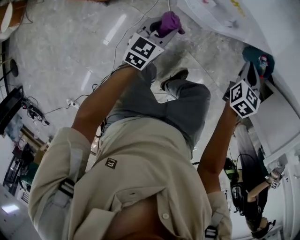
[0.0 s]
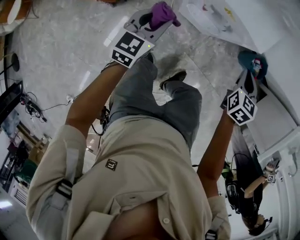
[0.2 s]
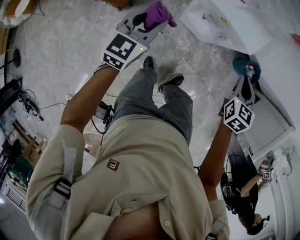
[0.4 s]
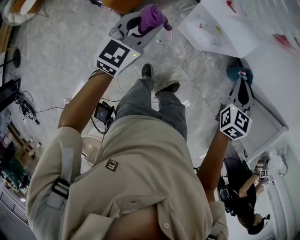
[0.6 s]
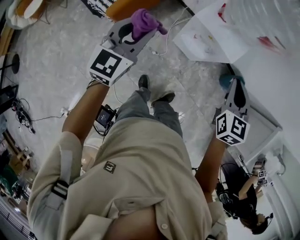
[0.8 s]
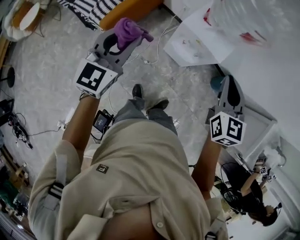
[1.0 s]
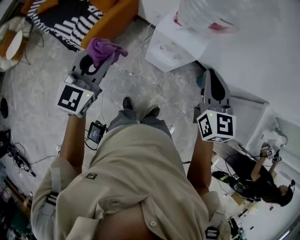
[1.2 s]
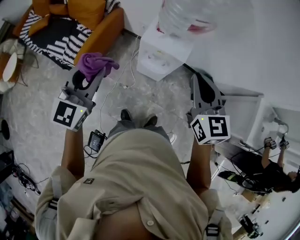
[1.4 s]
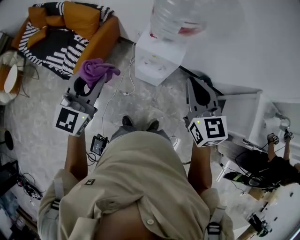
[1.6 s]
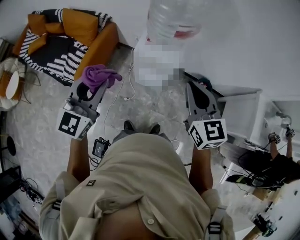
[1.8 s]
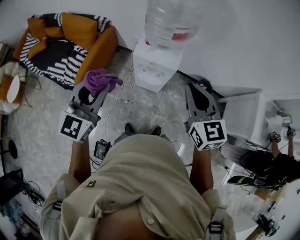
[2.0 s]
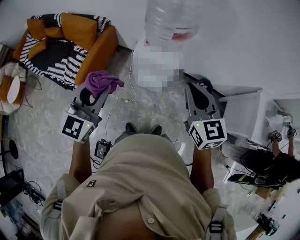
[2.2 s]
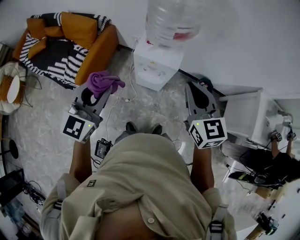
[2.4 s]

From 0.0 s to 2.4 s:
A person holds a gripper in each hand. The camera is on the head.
From 0.0 s to 1.2 s: Both grippers move upward, approximately 50 cm. The right gripper rotates about 30 degrees. Meanwhile the left gripper changes its angle by approximately 30 degrees.
From 1.2 s to 2.4 s: The right gripper ends up some 5 cm from where it was. The left gripper travels to the right and upward by approximately 10 cm.

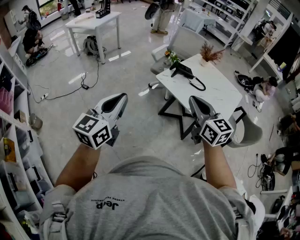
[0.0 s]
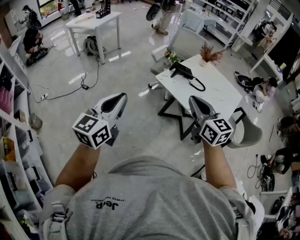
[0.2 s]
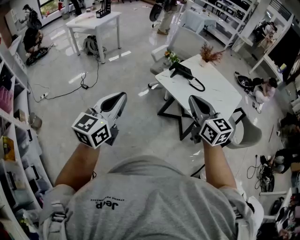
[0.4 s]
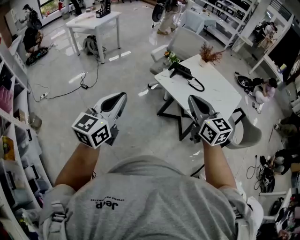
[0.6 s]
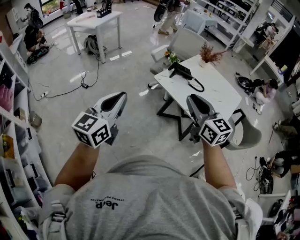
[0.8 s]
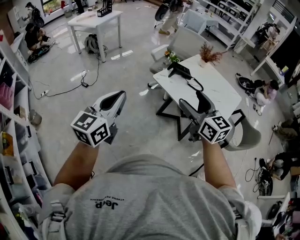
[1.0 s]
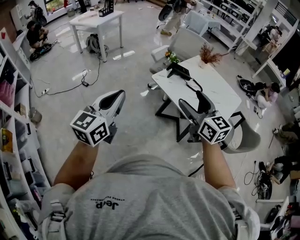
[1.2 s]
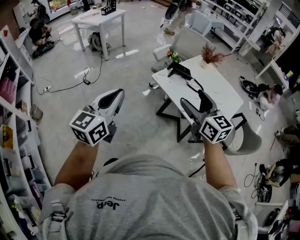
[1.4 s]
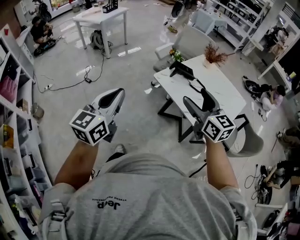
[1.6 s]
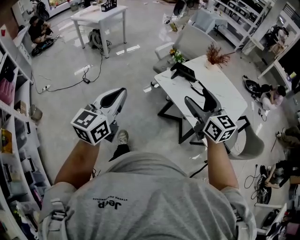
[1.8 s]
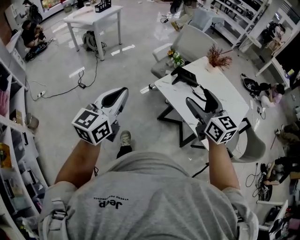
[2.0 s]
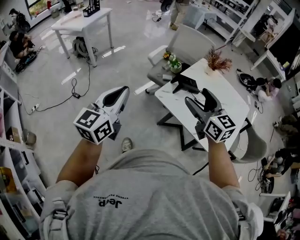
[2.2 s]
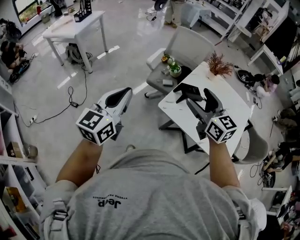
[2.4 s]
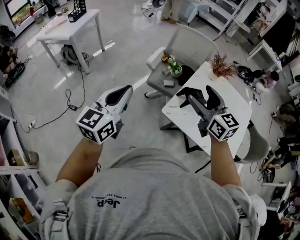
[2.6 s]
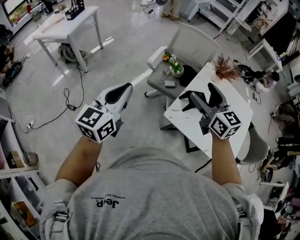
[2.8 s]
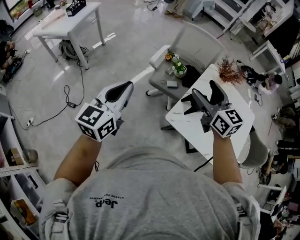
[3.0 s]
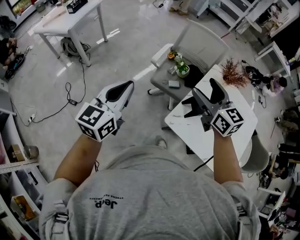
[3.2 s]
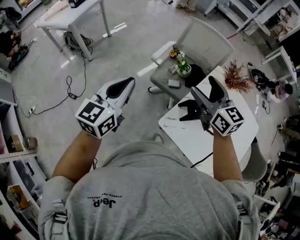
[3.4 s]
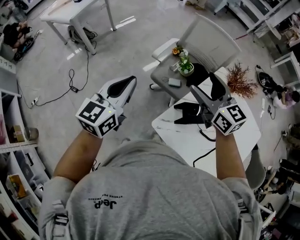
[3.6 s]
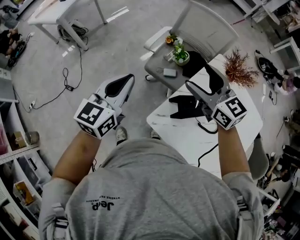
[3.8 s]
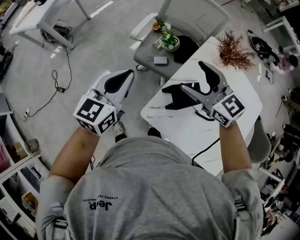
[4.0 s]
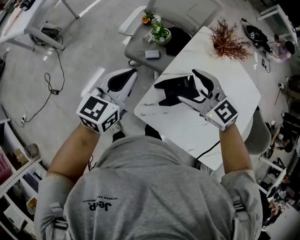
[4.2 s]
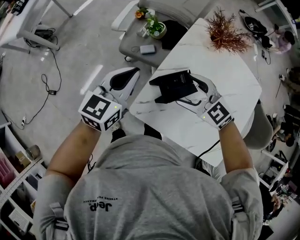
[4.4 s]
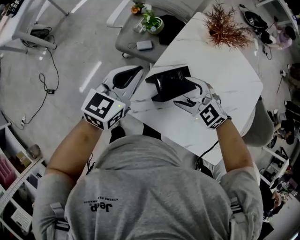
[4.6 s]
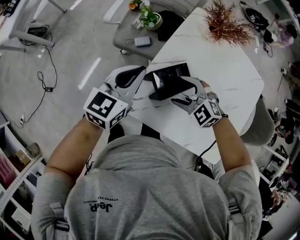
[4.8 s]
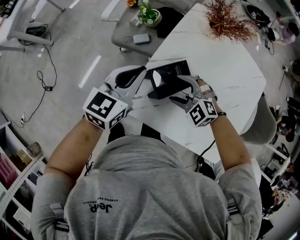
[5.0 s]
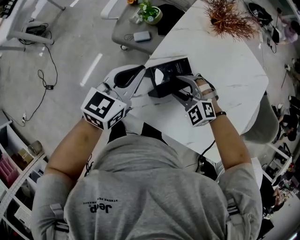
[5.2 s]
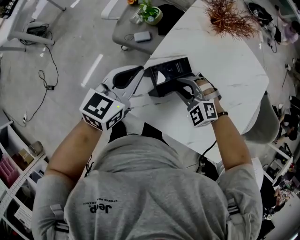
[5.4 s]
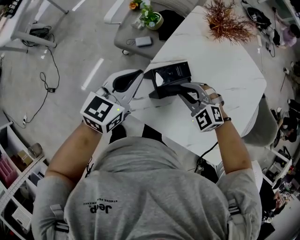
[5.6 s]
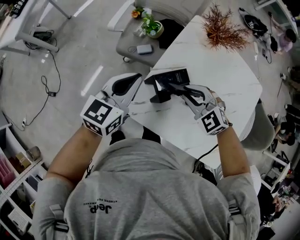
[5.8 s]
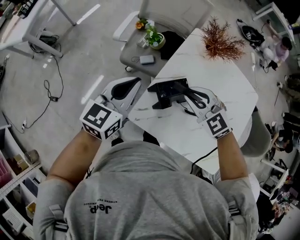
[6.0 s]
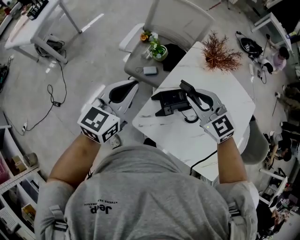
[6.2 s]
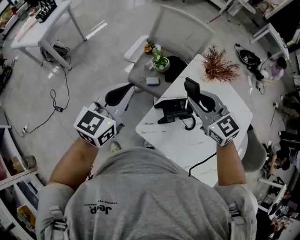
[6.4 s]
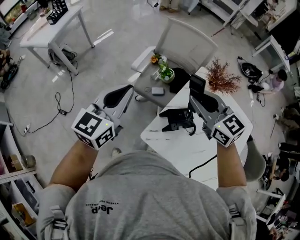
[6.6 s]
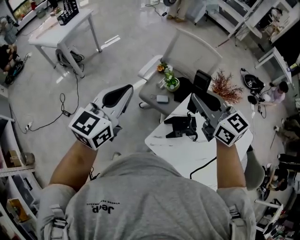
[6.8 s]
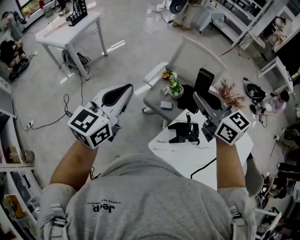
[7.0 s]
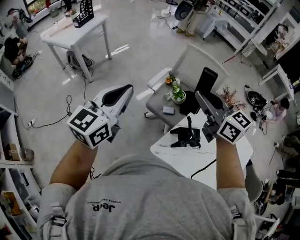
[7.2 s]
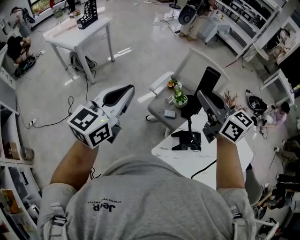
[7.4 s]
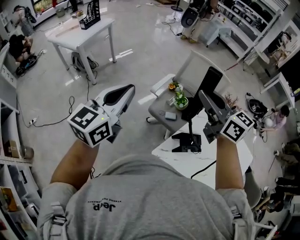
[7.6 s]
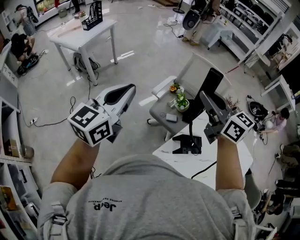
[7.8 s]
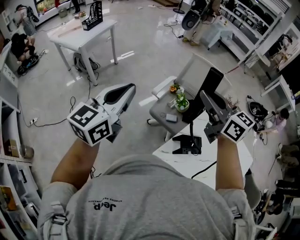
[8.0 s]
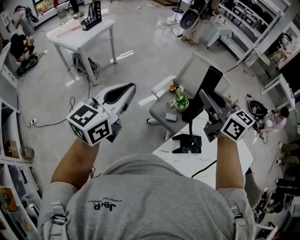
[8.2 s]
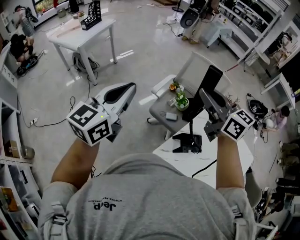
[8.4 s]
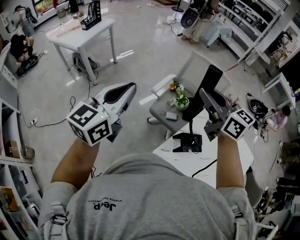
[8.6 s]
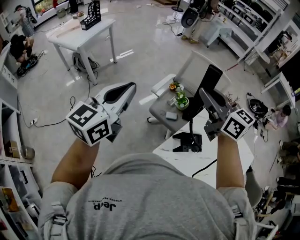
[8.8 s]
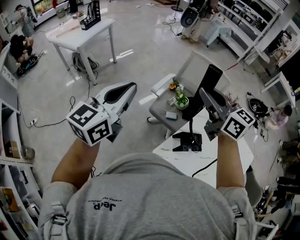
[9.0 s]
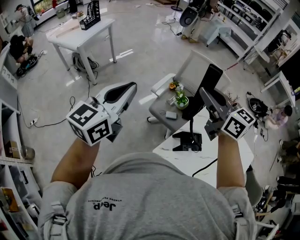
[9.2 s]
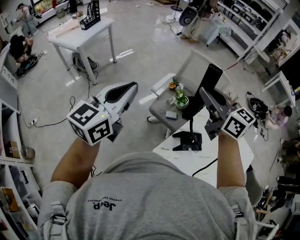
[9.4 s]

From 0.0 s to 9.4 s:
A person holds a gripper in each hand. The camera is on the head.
From 0.0 s to 1.6 s: The left gripper is displaced to the right by roughly 5 cm, while the right gripper heads to the right and forward, covering some 10 cm, and opens up.
From 1.6 s to 3.2 s: The two grippers travel together, forward, about 50 cm.
From 3.2 s to 4.8 s: The left gripper travels to the right and downward by about 35 cm, and rotates about 20 degrees. The right gripper shifts about 35 cm downward and to the right, and tips its fingers downward by about 40 degrees.
From 4.8 s to 6.2 s: The right gripper goes some 20 cm upward, changes its angle by about 30 degrees, and closes up. Meanwhile the left gripper is displaced upward and to the left by roughly 15 cm.
From 6.2 s to 7.8 s: The left gripper shifts about 25 cm to the left and upward, and rotates approximately 20 degrees, while the right gripper moves upward, to the left and forward, some 30 cm, and rotates some 30 degrees.
From 7.8 s to 9.4 s: The grippers stay close to where they were, moving slightly.

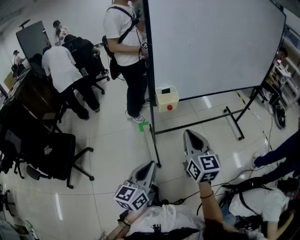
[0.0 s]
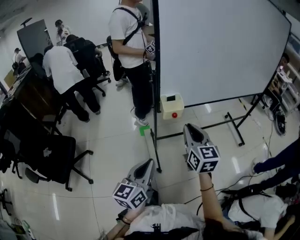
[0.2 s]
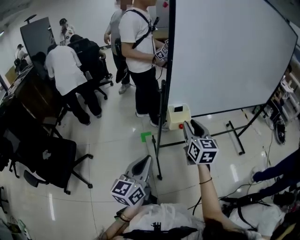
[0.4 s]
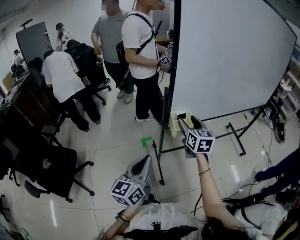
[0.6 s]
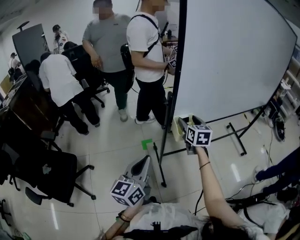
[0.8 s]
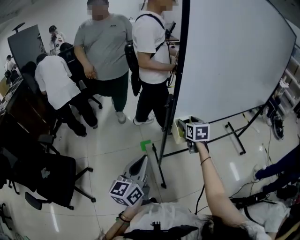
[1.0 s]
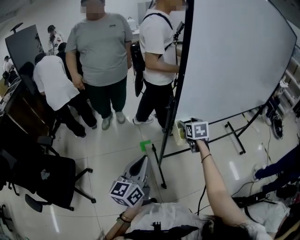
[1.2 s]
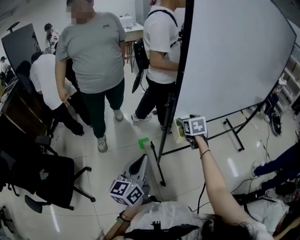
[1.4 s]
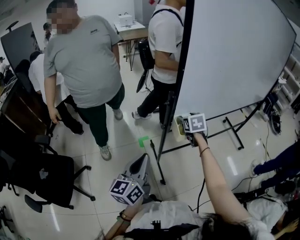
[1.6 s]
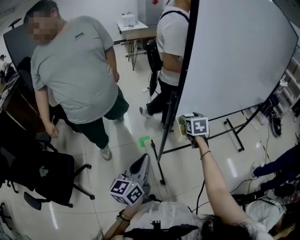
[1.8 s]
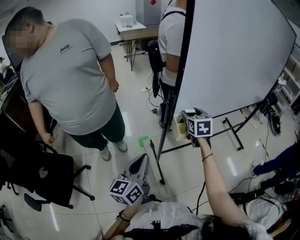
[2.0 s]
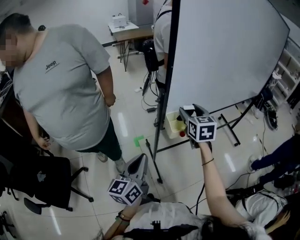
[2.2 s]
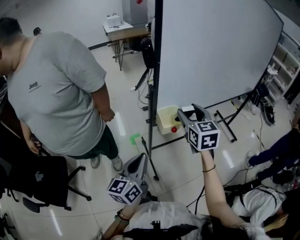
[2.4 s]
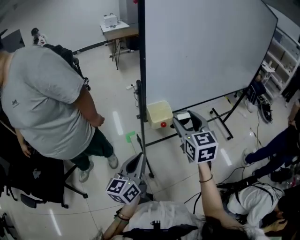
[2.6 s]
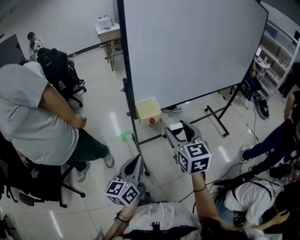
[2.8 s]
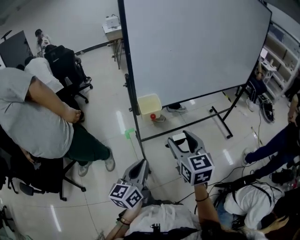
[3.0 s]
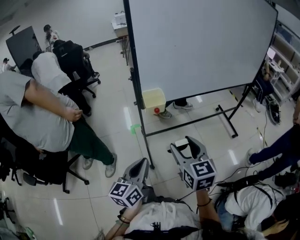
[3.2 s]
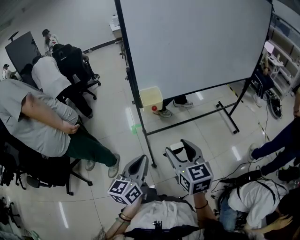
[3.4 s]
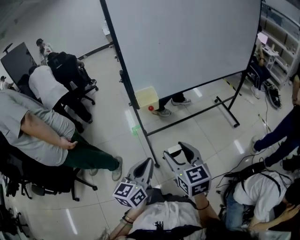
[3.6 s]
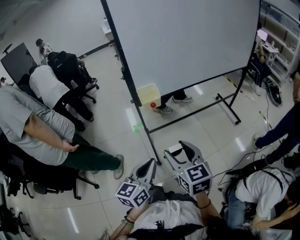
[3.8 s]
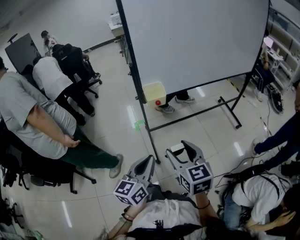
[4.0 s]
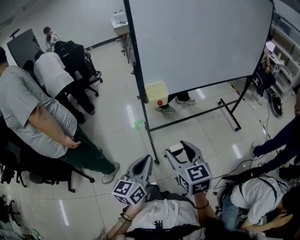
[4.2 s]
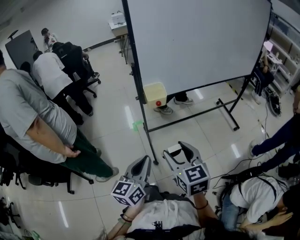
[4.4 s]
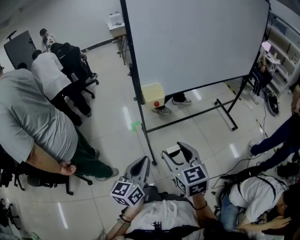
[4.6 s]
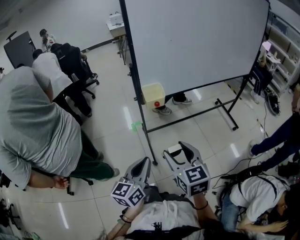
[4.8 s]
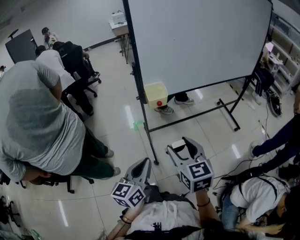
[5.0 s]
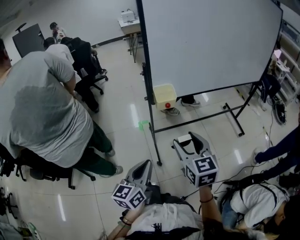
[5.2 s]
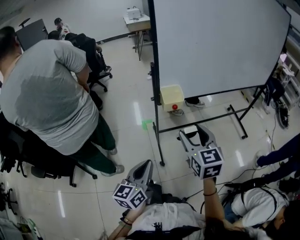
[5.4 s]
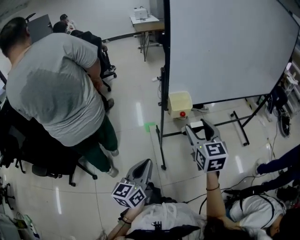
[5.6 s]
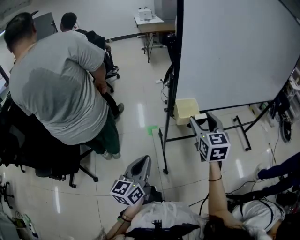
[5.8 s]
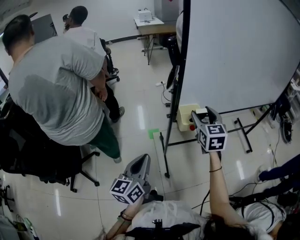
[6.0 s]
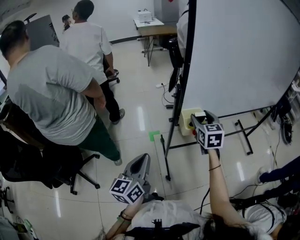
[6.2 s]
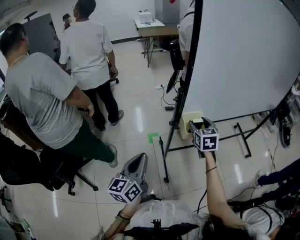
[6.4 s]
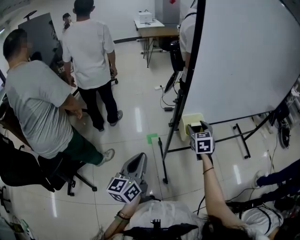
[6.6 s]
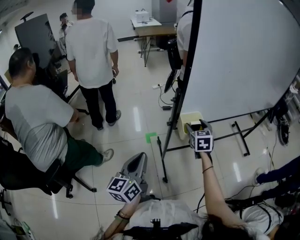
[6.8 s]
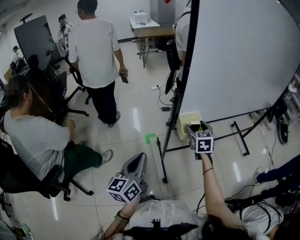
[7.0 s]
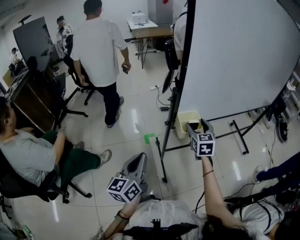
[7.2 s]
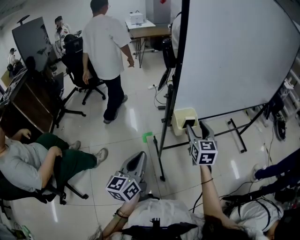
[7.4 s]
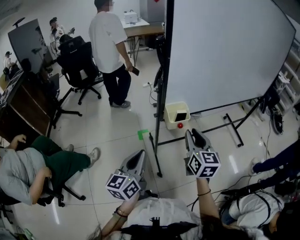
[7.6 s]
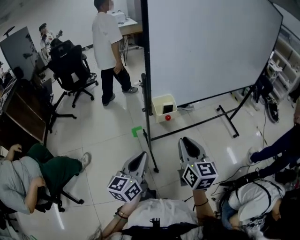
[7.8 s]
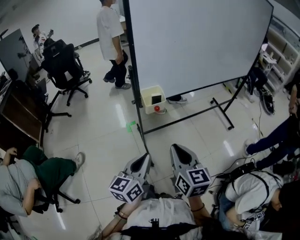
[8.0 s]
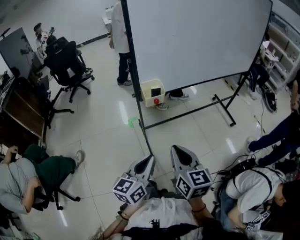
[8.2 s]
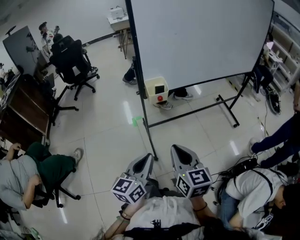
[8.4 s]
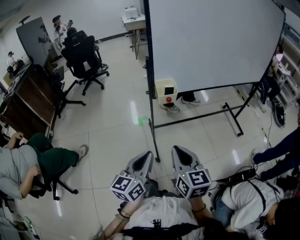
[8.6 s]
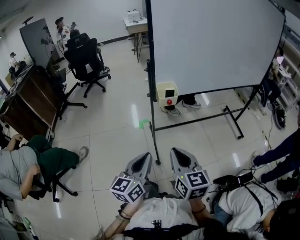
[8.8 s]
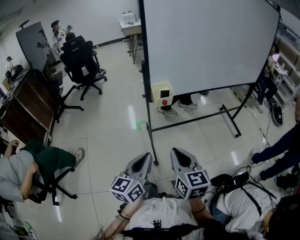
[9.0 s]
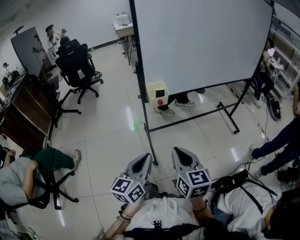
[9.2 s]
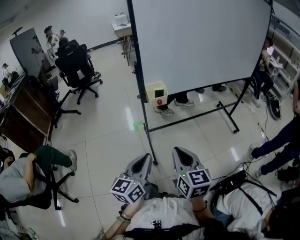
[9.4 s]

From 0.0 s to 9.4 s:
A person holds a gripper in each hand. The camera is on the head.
From 0.0 s to 1.6 s: The left gripper heads forward and to the left, covering some 25 cm, while the right gripper heads forward, covering roughly 35 cm, tilts its fingers some 40 degrees downward, and opens up.
From 1.6 s to 3.2 s: The right gripper moves backward, about 35 cm, and swivels some 30 degrees. Meanwhile the left gripper heads to the right and backward, covering approximately 25 cm.
From 3.2 s to 4.8 s: The right gripper travels backward by some 5 cm.
From 4.8 s to 6.2 s: The right gripper moves forward, some 35 cm. Meanwhile the left gripper travels to the left and forward by approximately 25 cm.
From 6.2 s to 7.8 s: The right gripper goes roughly 20 cm backward, swivels approximately 20 degrees, and closes its fingers. Meanwhile the left gripper heads to the right, covering some 10 cm.
From 7.8 s to 9.4 s: The left gripper goes some 15 cm backward and to the right. Meanwhile the right gripper travels backward by some 15 cm.

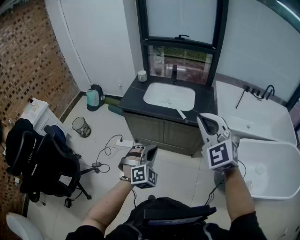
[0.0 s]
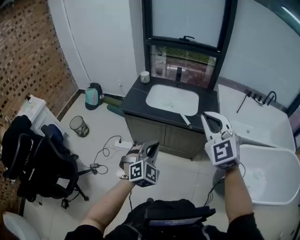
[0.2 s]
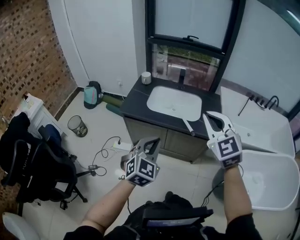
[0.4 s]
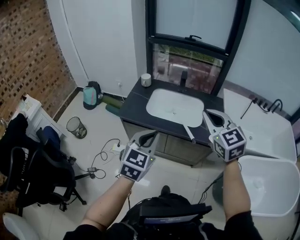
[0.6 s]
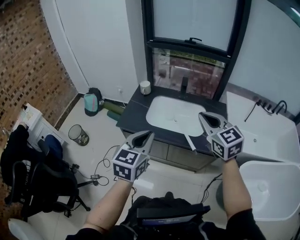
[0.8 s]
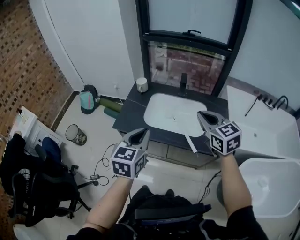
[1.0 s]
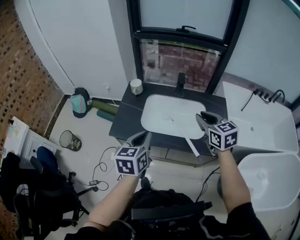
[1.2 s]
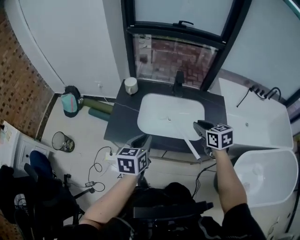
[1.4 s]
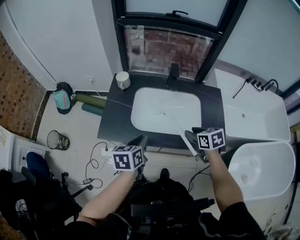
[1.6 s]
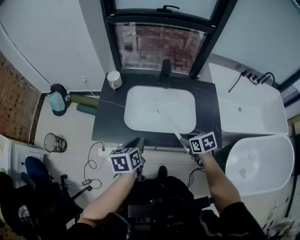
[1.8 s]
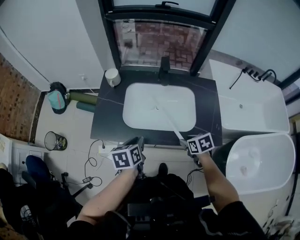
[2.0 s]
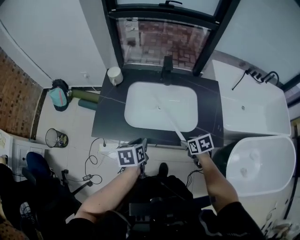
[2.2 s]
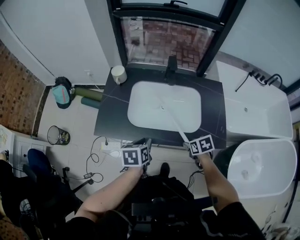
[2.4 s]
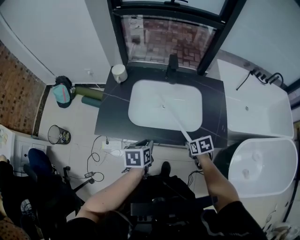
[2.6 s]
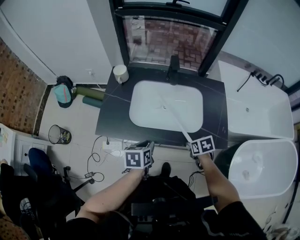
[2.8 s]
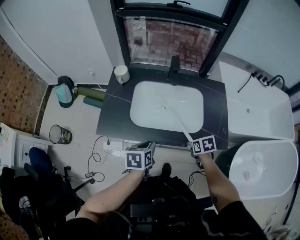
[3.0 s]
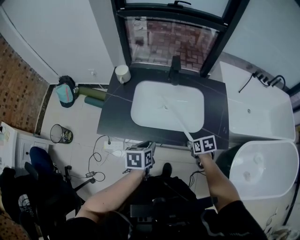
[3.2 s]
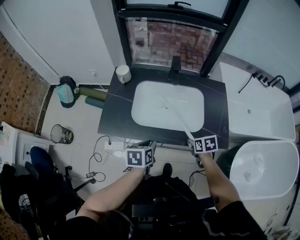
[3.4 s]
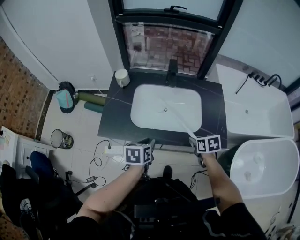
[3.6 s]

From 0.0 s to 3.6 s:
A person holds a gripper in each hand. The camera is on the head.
From 0.0 s to 1.8 s: The two grippers travel together, forward, some 60 cm. The right gripper shifts about 35 cm downward, twists approximately 70 degrees clockwise, seen from behind, and opens its fingers, while the left gripper rolls counterclockwise, seen from behind, by roughly 80 degrees.
From 1.8 s to 3.6 s: The left gripper ends up approximately 5 cm from where it was. The right gripper goes downward and returns, roughly 10 cm each way.
